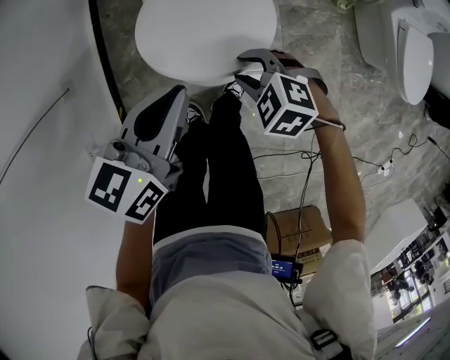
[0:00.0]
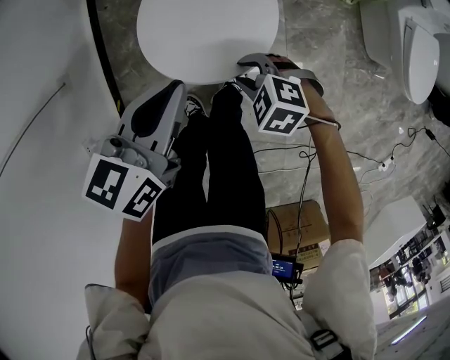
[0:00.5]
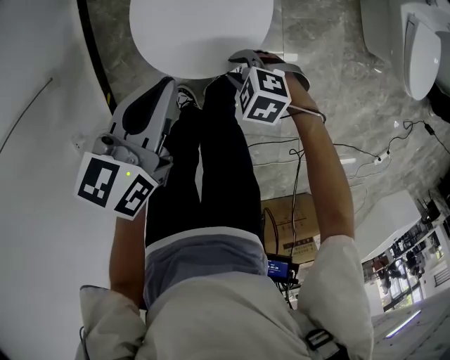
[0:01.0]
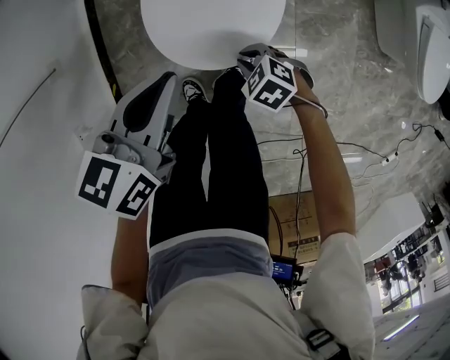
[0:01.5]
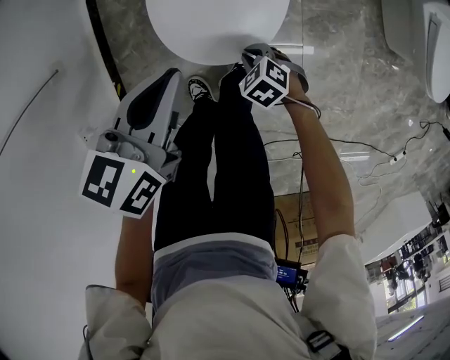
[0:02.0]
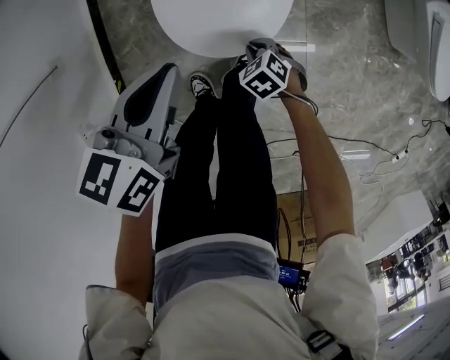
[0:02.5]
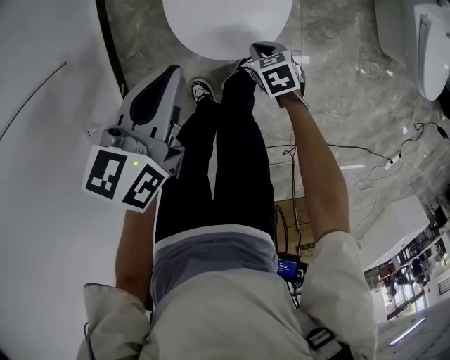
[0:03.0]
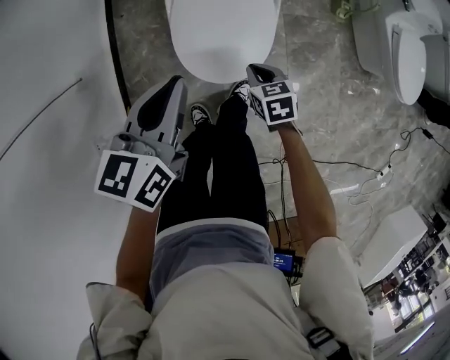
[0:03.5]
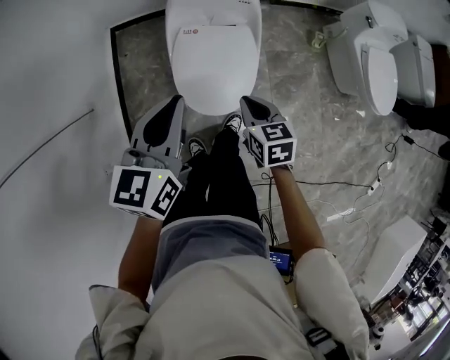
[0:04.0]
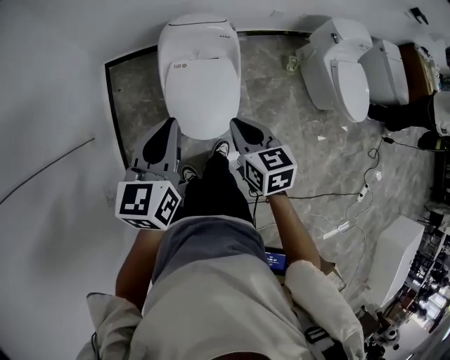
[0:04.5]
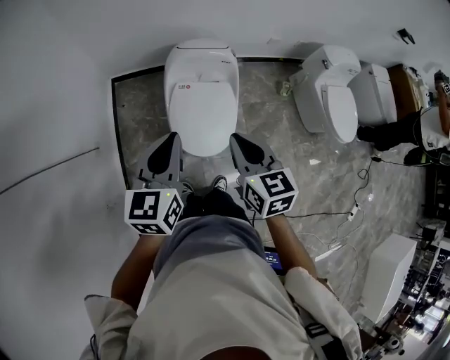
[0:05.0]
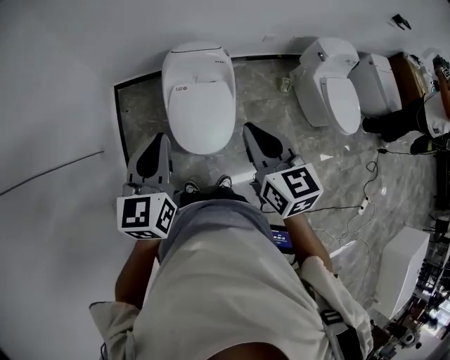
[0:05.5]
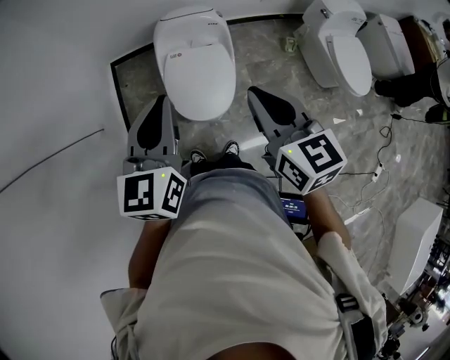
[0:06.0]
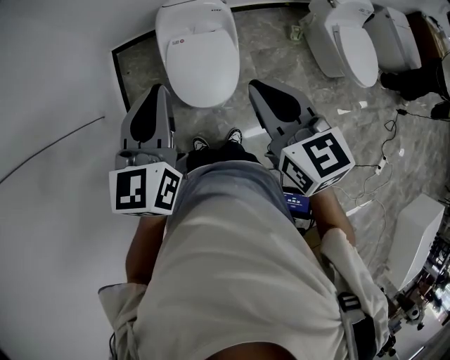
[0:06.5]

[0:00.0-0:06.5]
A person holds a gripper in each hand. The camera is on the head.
0:00.0 to 0:02.0: The right gripper goes approximately 20 cm downward, turns by roughly 20 degrees, and closes. The left gripper shifts about 10 cm downward.
0:02.0 to 0:04.5: The right gripper goes some 50 cm upward, and tilts its fingers some 30 degrees upward; the left gripper heads upward, covering roughly 30 cm, and swivels roughly 20 degrees.
0:04.5 to 0:06.5: The right gripper heads upward, covering about 20 cm; the left gripper goes about 15 cm upward and backward.

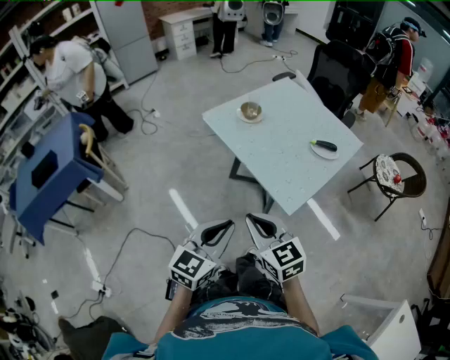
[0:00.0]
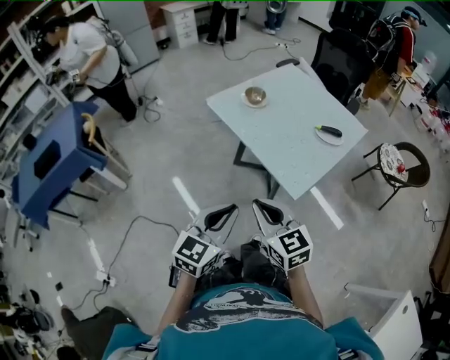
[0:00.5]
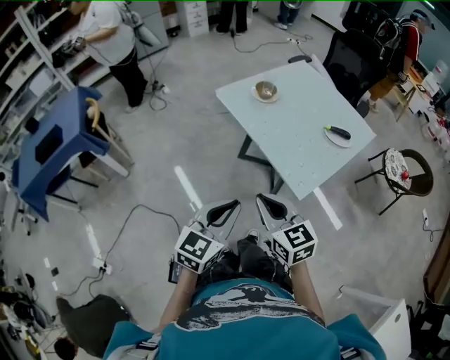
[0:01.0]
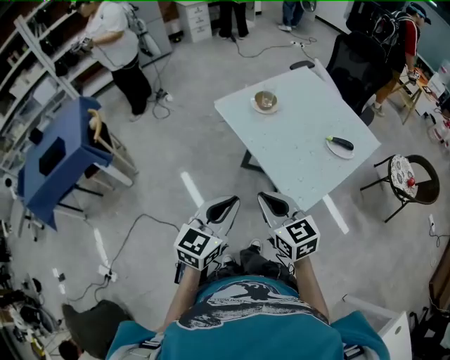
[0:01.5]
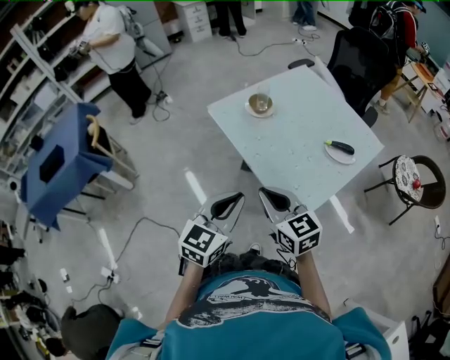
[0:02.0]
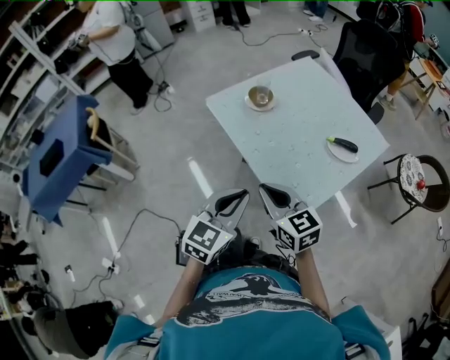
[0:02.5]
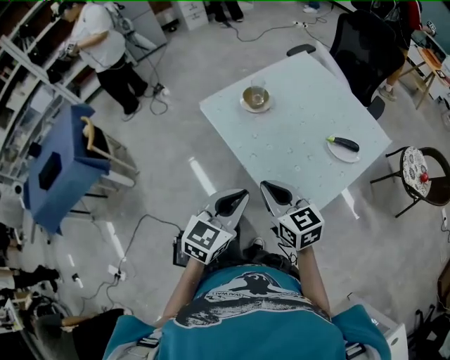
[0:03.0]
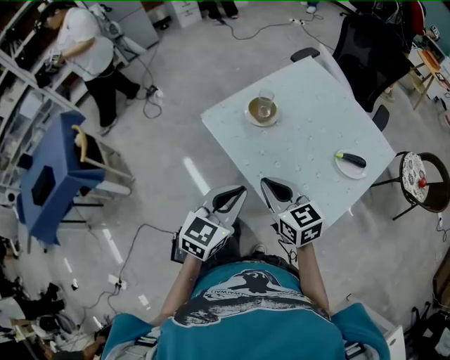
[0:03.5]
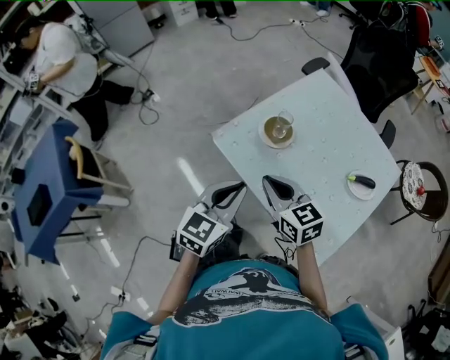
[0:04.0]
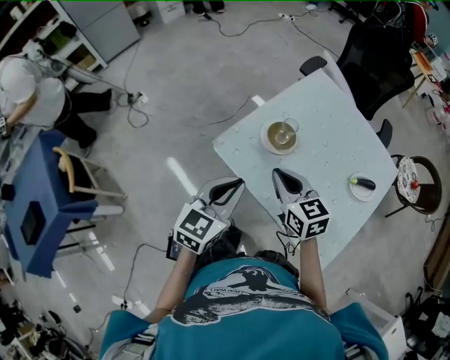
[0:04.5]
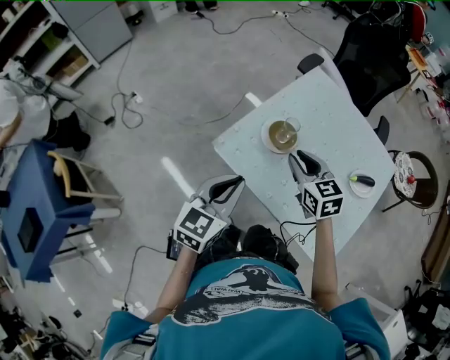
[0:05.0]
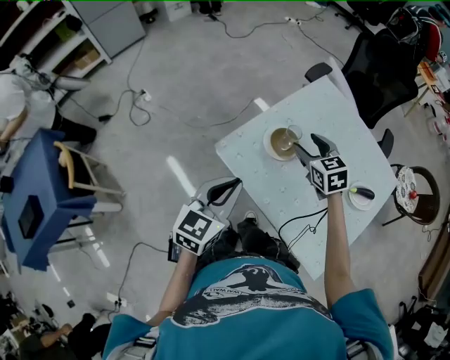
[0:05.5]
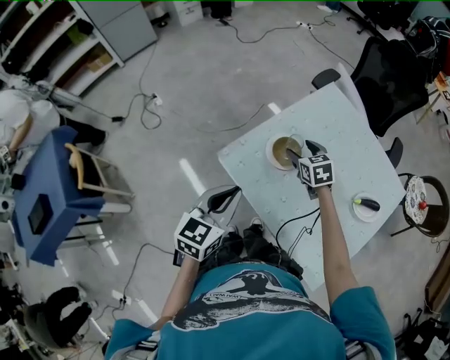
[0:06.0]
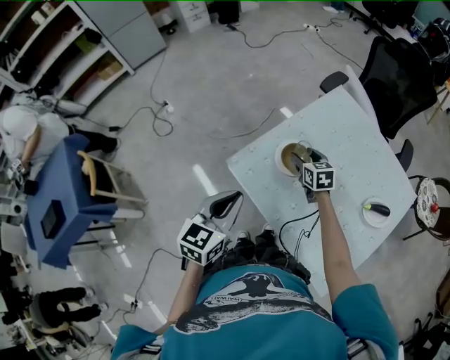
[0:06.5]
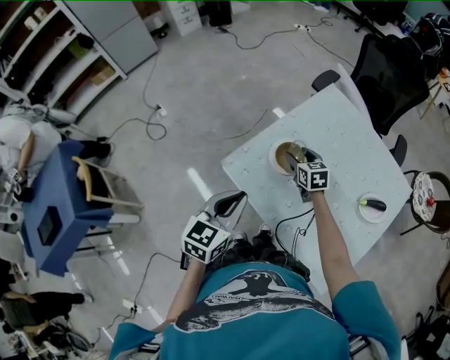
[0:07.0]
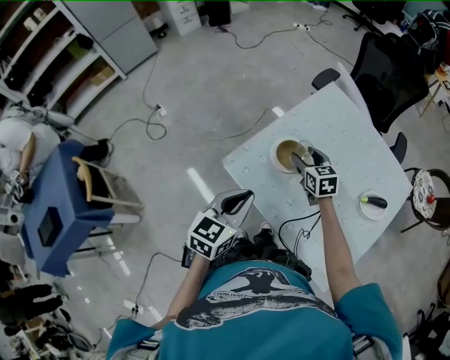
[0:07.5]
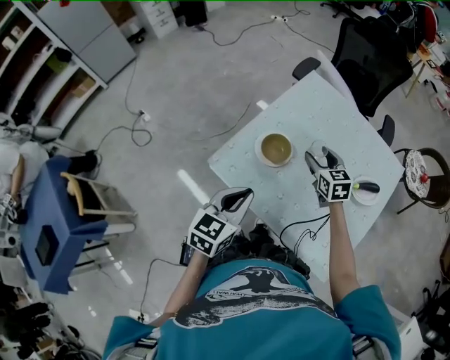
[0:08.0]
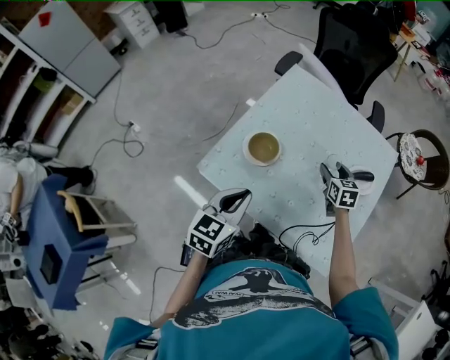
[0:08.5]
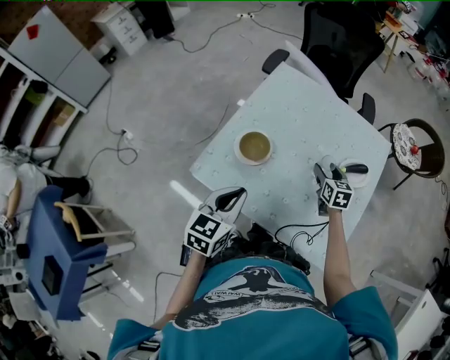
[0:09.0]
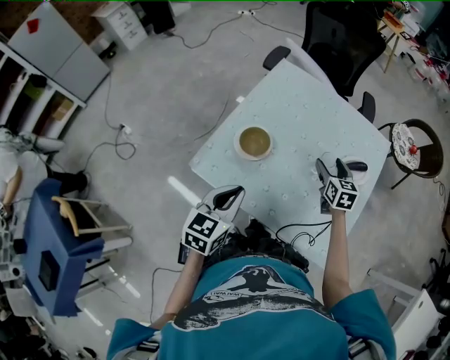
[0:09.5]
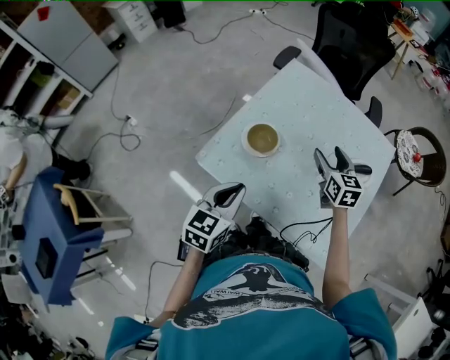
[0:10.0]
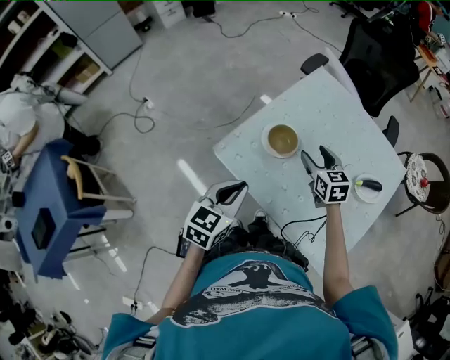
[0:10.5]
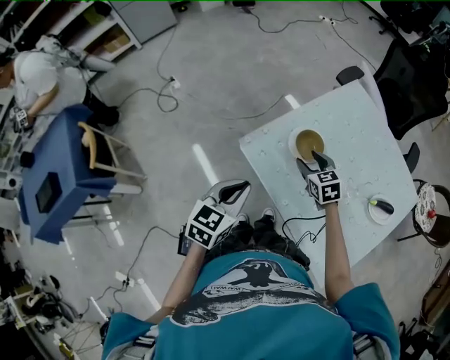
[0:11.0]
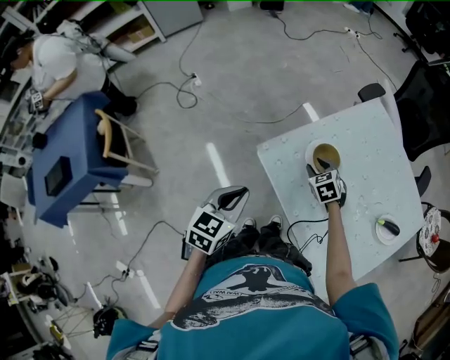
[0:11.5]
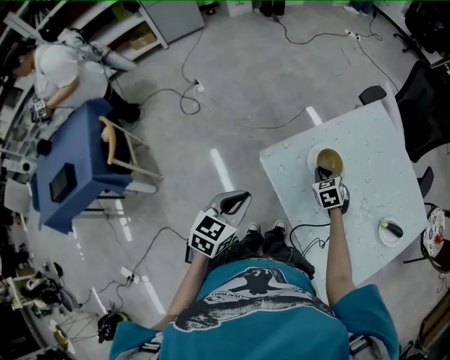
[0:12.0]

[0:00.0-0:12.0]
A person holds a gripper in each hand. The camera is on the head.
0:00.0 to 0:02.0: Both grippers move forward, about 15 cm.
0:02.0 to 0:04.0: The grippers both shift forward by roughly 25 cm.
0:04.0 to 0:06.0: The right gripper heads forward and downward, covering approximately 25 cm, rotates roughly 20 degrees, and opens up; the left gripper moves forward, about 5 cm.
0:06.0 to 0:08.0: The right gripper shifts approximately 10 cm to the right; the left gripper changes place by approximately 5 cm.
0:08.0 to 0:10.0: The right gripper is displaced to the right by some 10 cm.
0:10.0 to 0:12.0: The left gripper shifts by roughly 15 cm, and changes its angle by roughly 20 degrees, while the right gripper shifts by roughly 25 cm, turns by about 50 degrees, and closes up.

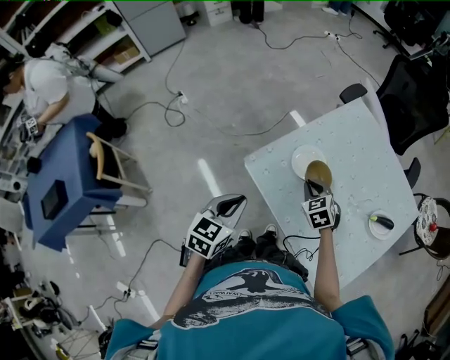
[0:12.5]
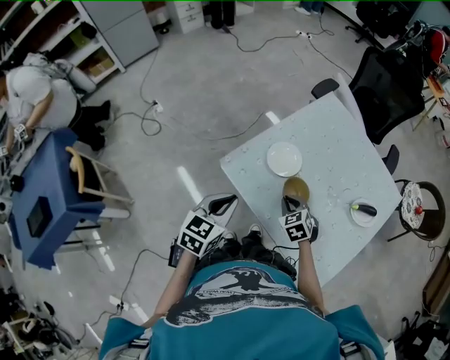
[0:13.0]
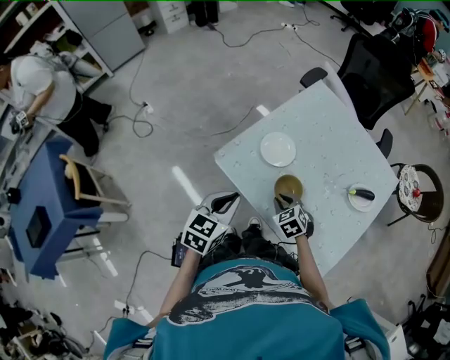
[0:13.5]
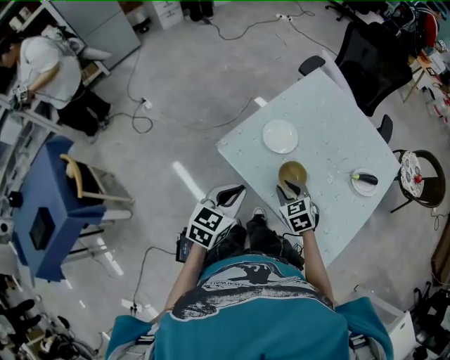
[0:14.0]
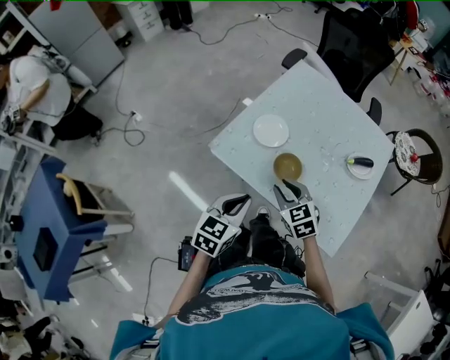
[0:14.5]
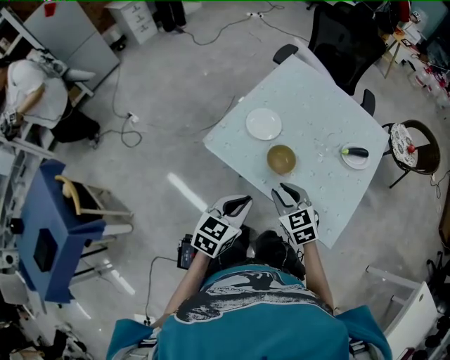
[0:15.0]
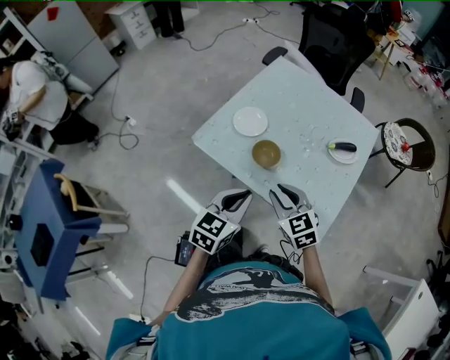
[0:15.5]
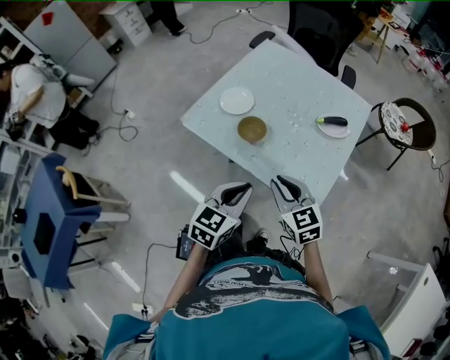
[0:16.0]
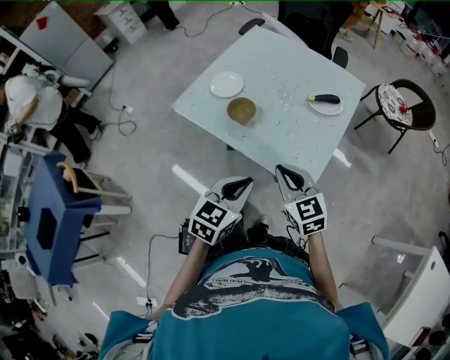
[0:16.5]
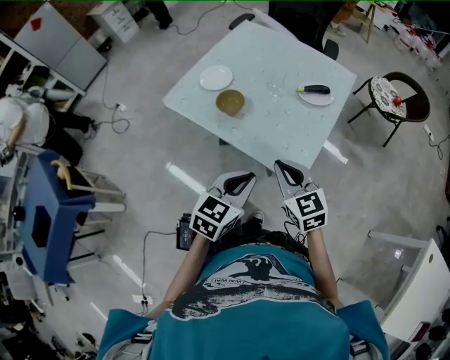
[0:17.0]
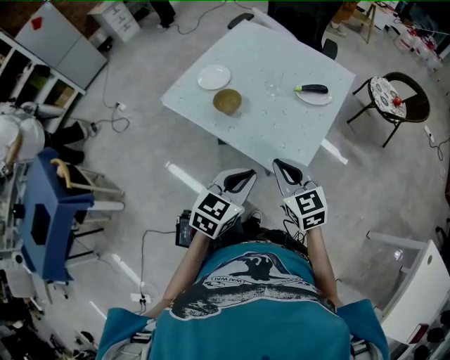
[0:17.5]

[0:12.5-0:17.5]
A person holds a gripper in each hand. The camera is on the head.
0:12.5 to 0:15.0: The right gripper moves backward, about 20 cm, while the left gripper moves to the right and backward, about 15 cm, and changes its angle by about 20 degrees.
0:15.0 to 0:17.5: The grippers both shift to the right and backward by roughly 25 cm.

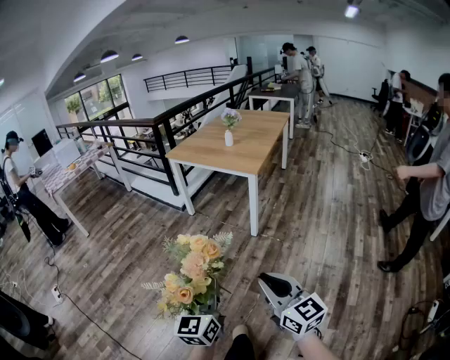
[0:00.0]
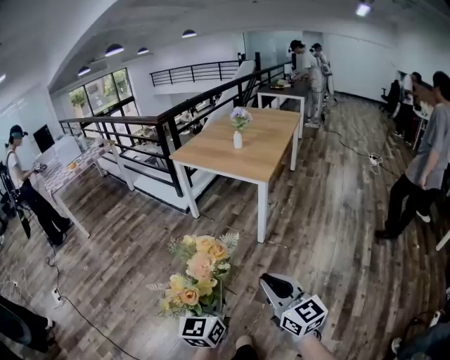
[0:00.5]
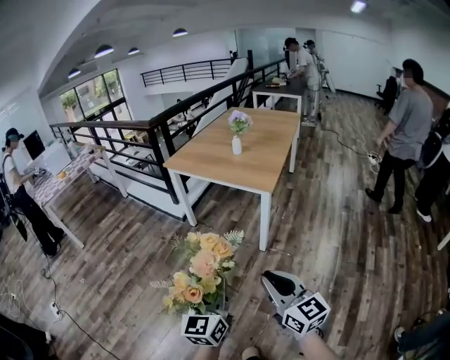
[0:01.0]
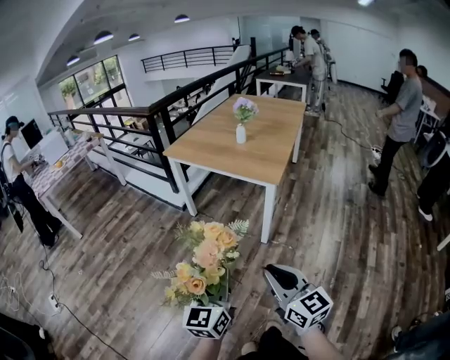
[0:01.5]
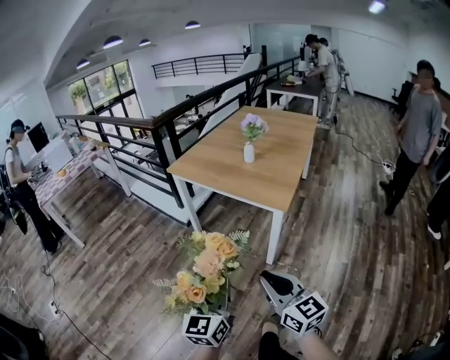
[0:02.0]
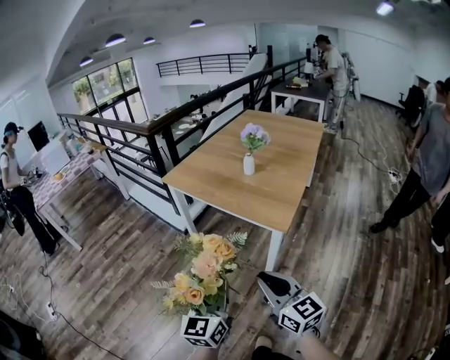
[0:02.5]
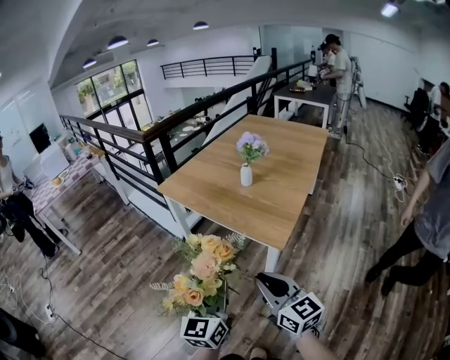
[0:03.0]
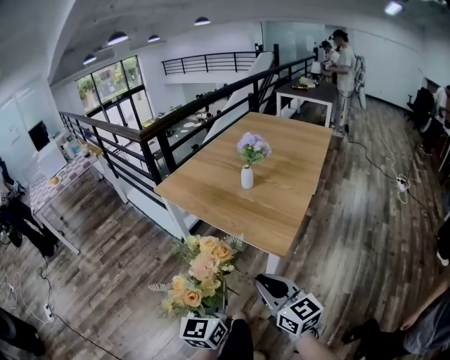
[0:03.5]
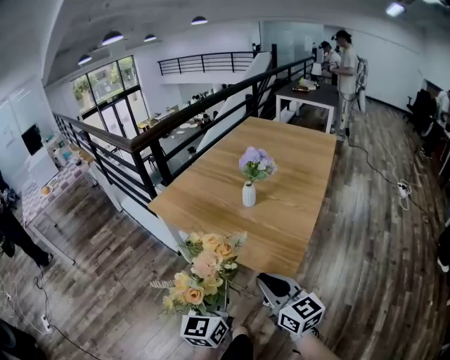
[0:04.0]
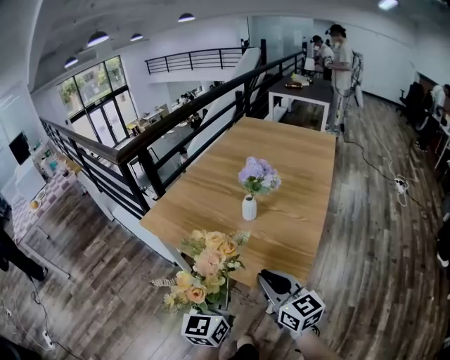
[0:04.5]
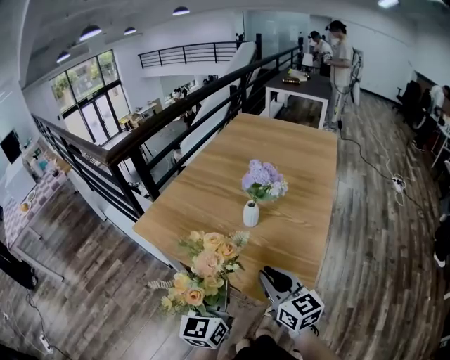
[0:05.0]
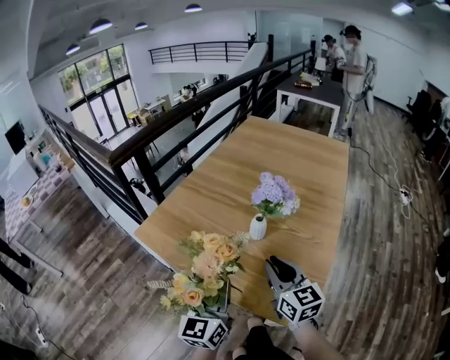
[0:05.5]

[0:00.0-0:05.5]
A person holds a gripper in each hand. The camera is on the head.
0:00.0 to 0:02.0: The grippers both shift forward by approximately 35 cm.
0:02.0 to 0:03.5: The two grippers go about 25 cm forward and to the right.
0:03.5 to 0:05.5: The two grippers go about 35 cm forward.
